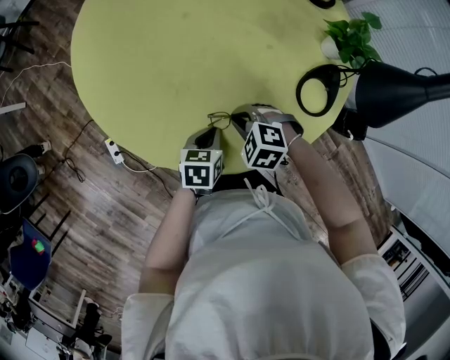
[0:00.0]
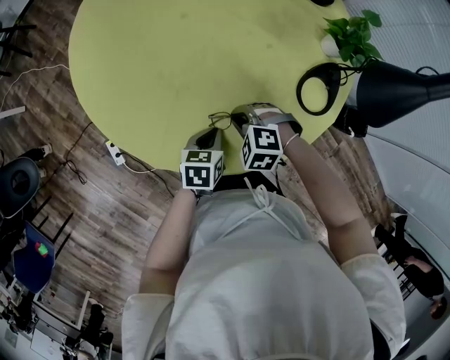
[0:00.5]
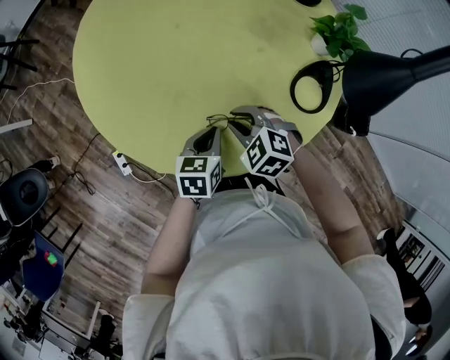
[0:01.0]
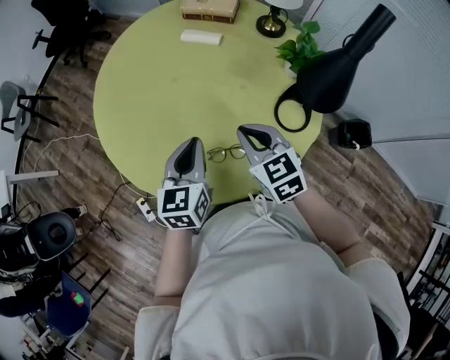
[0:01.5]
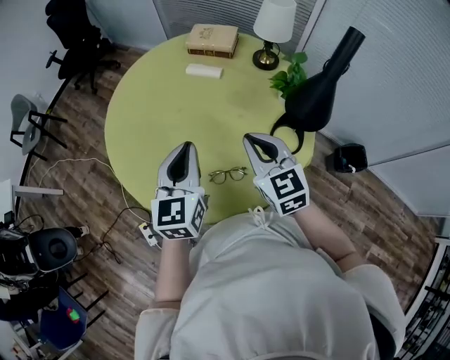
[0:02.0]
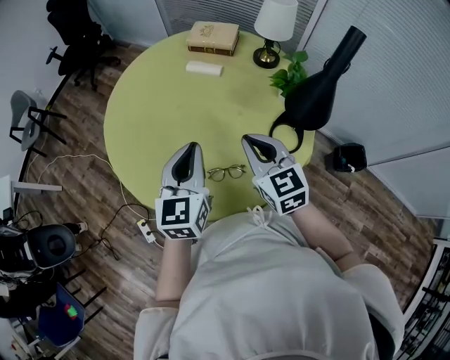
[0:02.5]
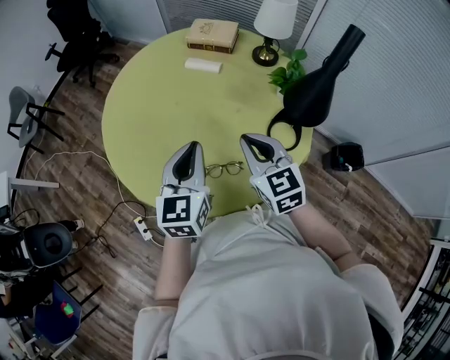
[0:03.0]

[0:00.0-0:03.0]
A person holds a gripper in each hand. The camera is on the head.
0:00.0 to 0:01.5: The two grippers go some 20 cm upward. The left gripper swivels some 30 degrees, while the right gripper angles its fingers upward, by some 40 degrees.
0:01.5 to 0:03.0: Both grippers travel together upward, roughly 10 cm.

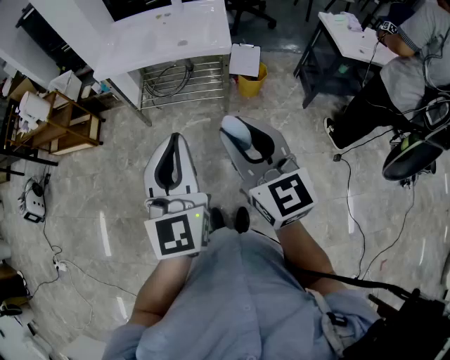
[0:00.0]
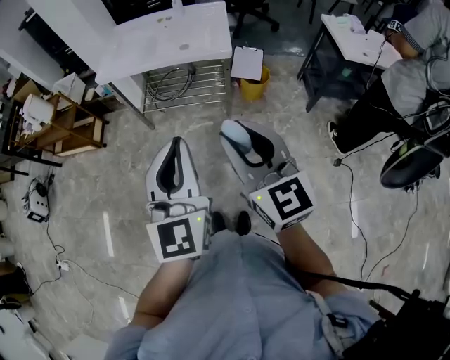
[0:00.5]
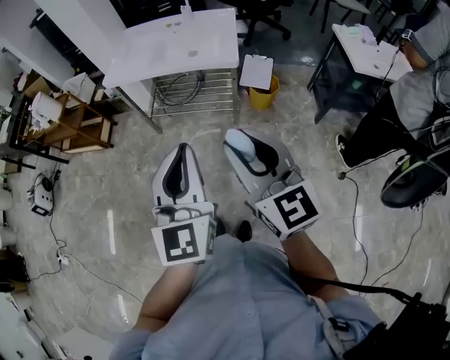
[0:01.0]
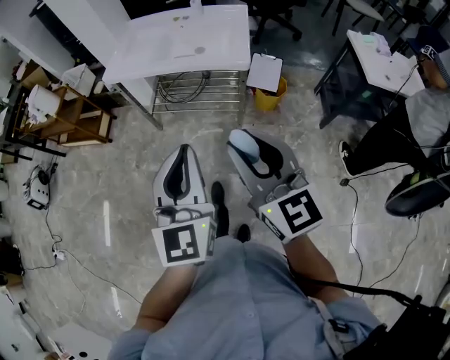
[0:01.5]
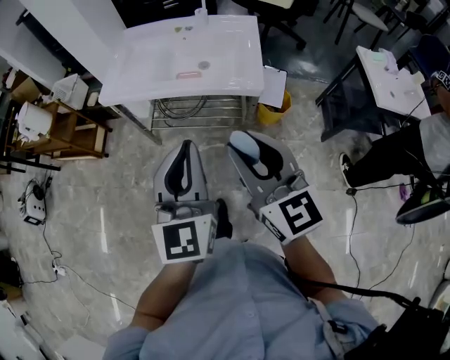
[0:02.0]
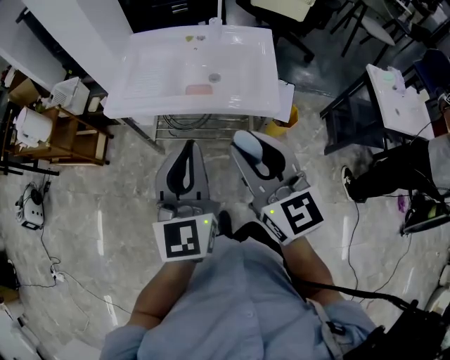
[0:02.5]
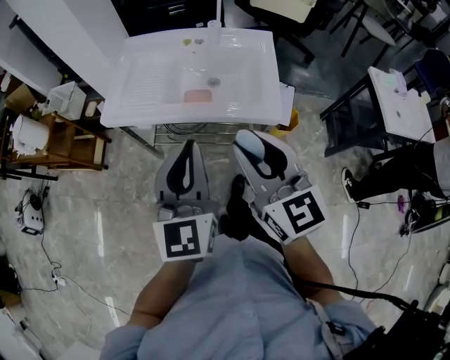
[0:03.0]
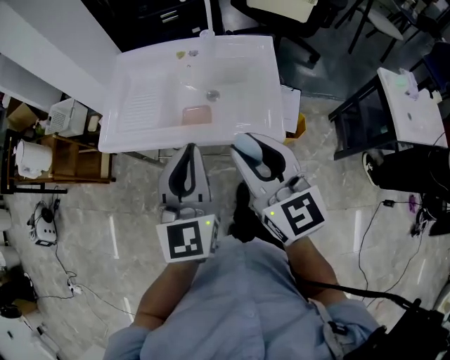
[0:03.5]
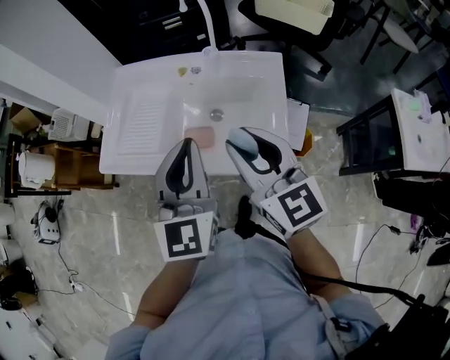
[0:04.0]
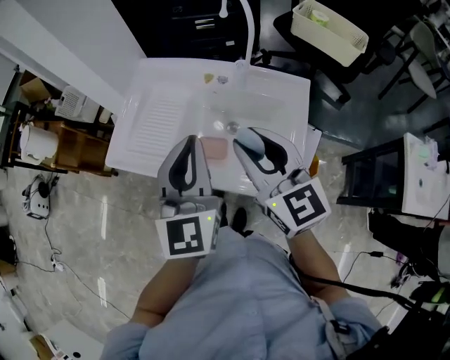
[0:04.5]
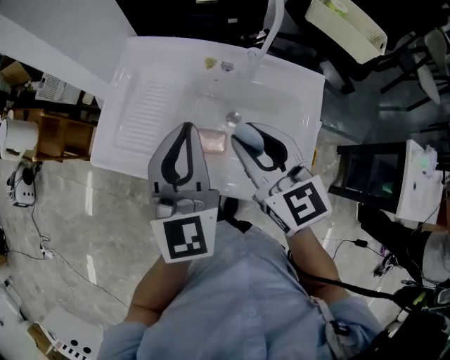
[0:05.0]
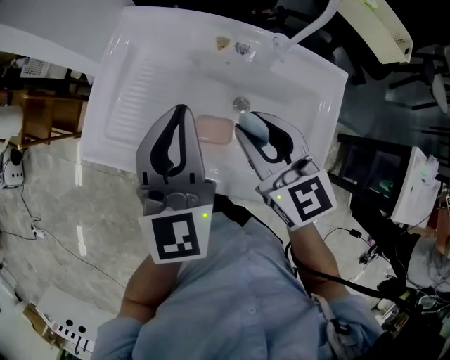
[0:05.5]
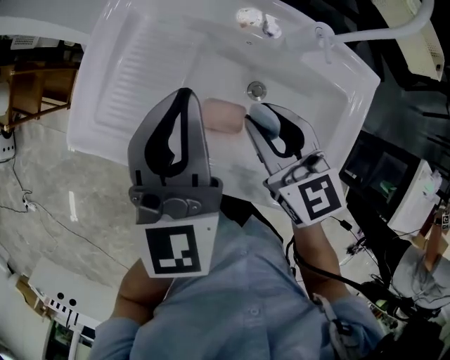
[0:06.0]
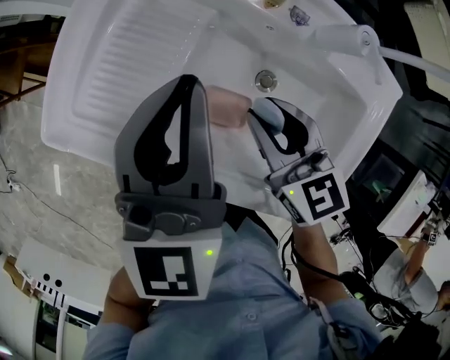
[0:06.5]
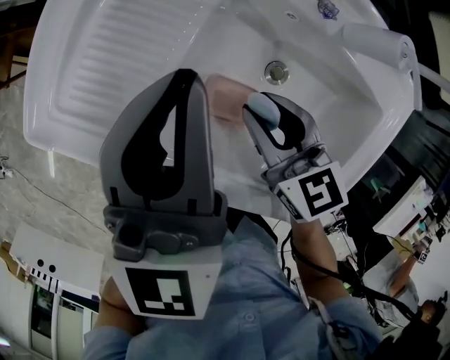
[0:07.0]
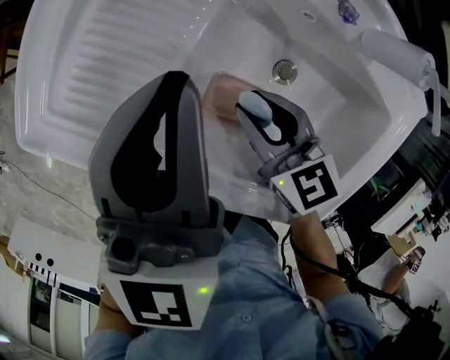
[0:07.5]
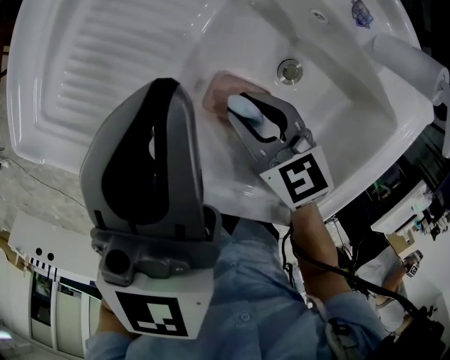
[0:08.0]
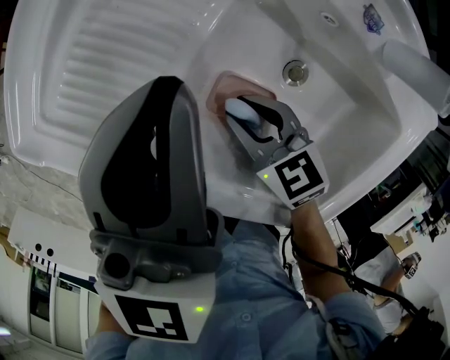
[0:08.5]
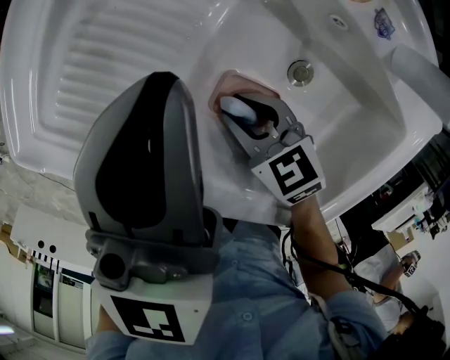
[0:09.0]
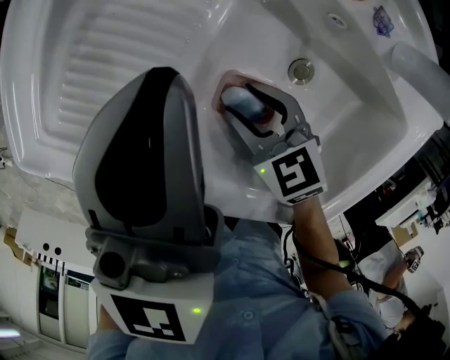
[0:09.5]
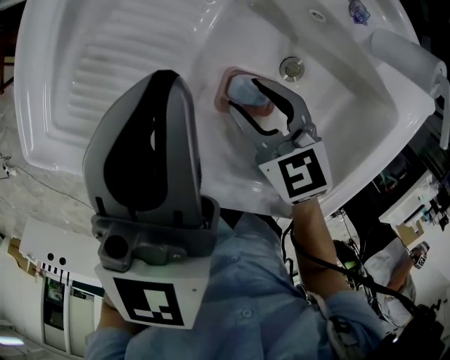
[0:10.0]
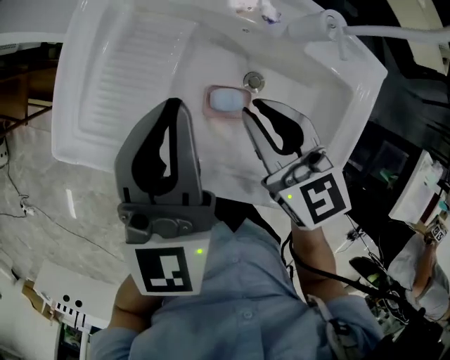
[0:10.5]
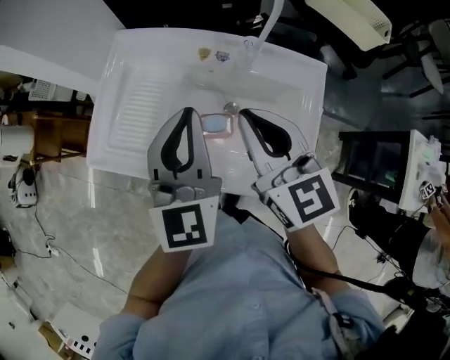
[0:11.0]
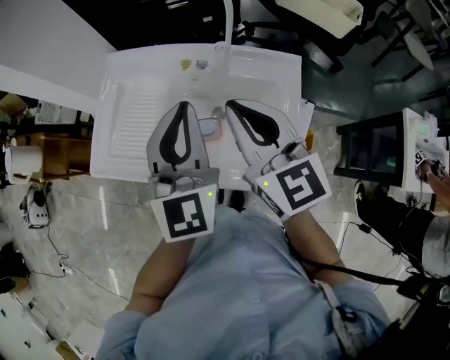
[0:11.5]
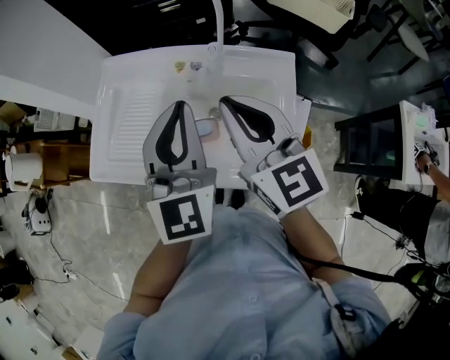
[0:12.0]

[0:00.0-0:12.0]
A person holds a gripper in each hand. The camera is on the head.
0:00.0 to 0:02.0: Both grippers move forward, about 25 cm.
0:02.0 to 0:04.0: Both grippers travel together forward, about 35 cm.
0:04.0 to 0:06.0: Both grippers travel together forward and downward, about 25 cm. The right gripper swivels about 30 degrees.
0:06.0 to 0:08.0: The left gripper shifts some 10 cm downward, while the right gripper heads downward, covering some 20 cm, and changes its angle by about 30 degrees.
0:08.0 to 0:10.0: The grippers make only small movements.
0:10.0 to 0:12.0: The right gripper shifts about 35 cm upward, tips its fingers upward by roughly 40 degrees, and closes up, while the left gripper is displaced upward, to the right and backward by approximately 30 cm, and swivels roughly 30 degrees.

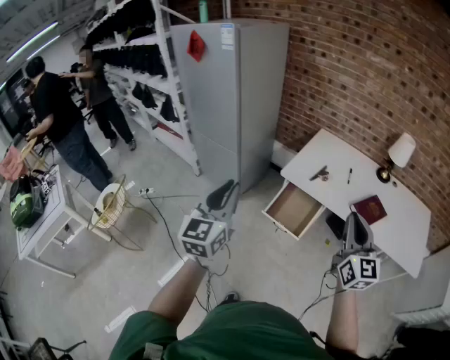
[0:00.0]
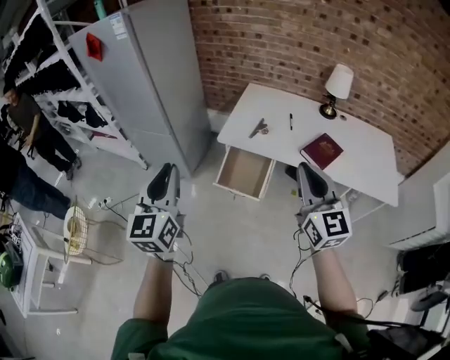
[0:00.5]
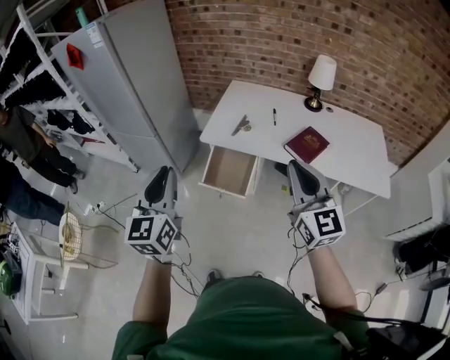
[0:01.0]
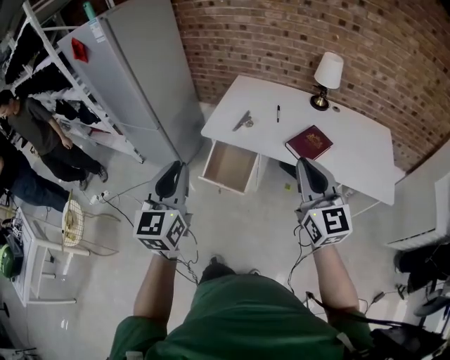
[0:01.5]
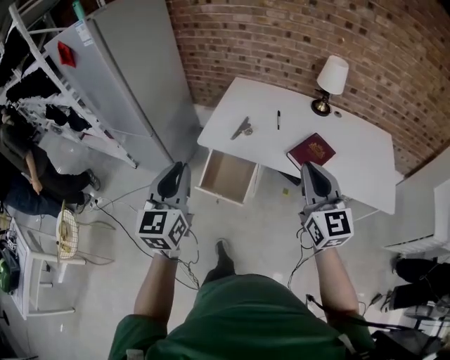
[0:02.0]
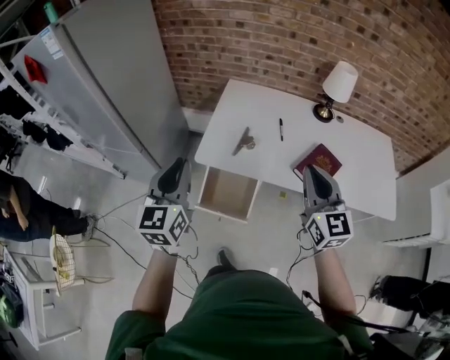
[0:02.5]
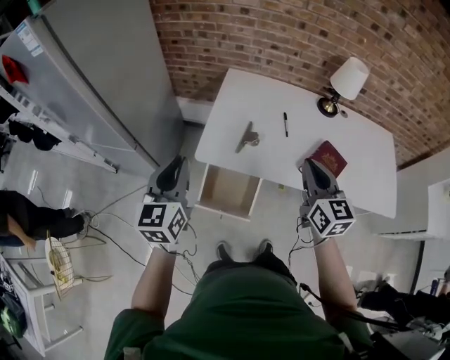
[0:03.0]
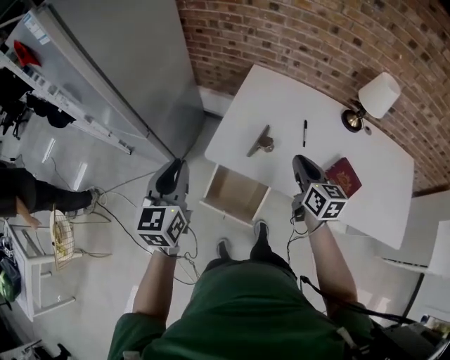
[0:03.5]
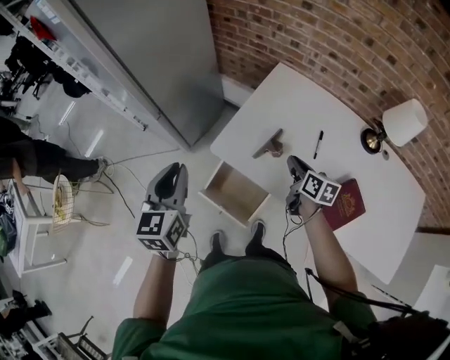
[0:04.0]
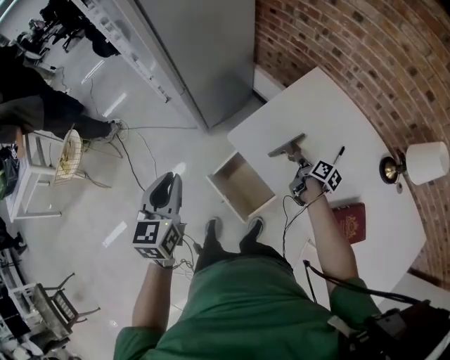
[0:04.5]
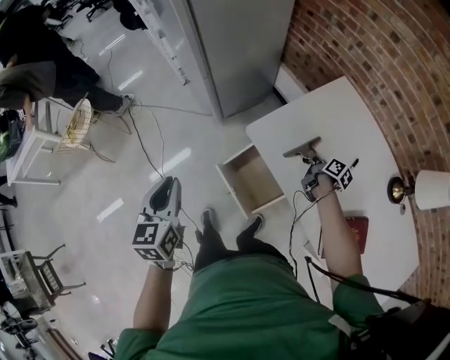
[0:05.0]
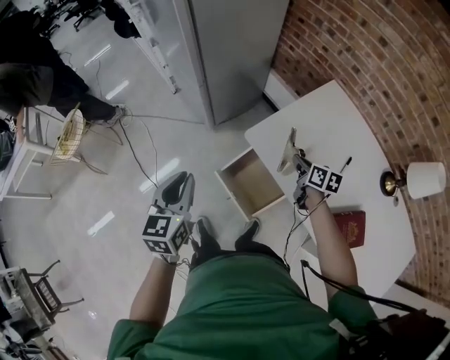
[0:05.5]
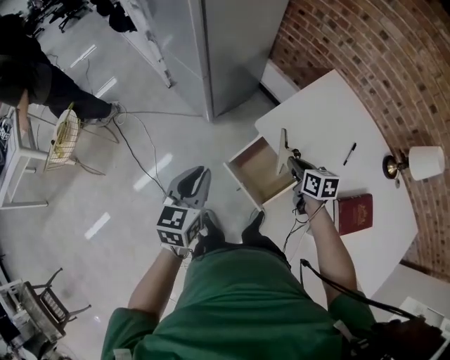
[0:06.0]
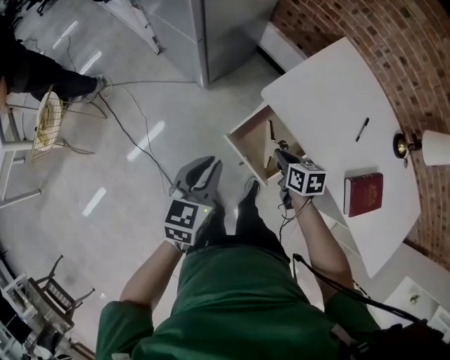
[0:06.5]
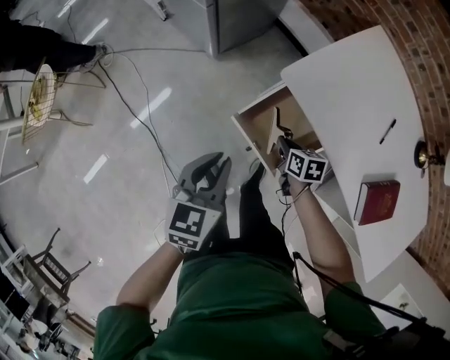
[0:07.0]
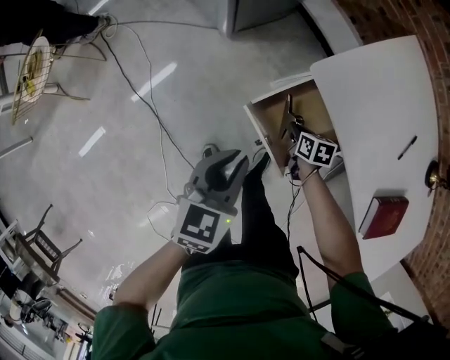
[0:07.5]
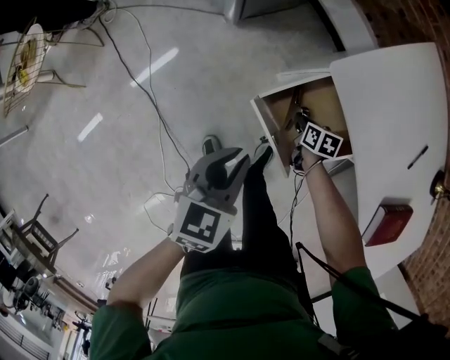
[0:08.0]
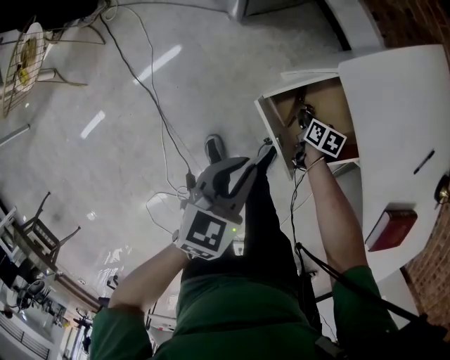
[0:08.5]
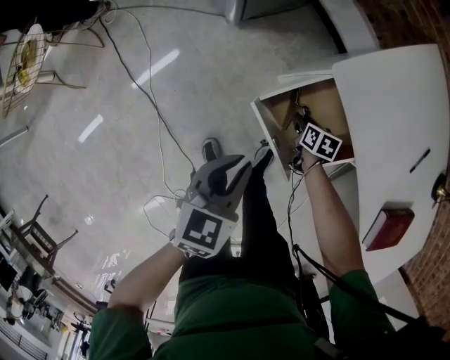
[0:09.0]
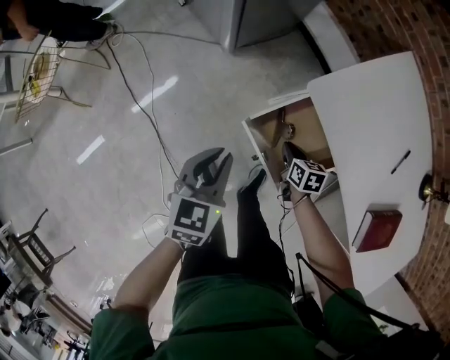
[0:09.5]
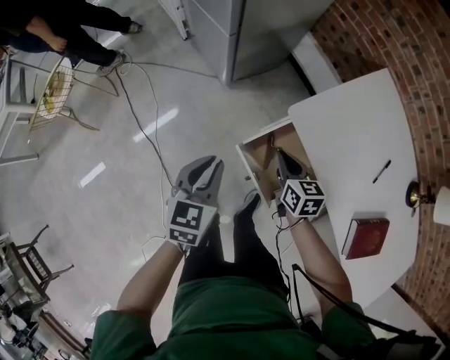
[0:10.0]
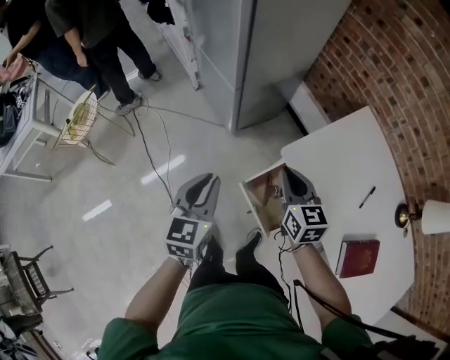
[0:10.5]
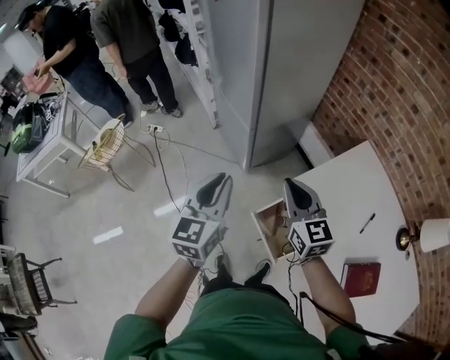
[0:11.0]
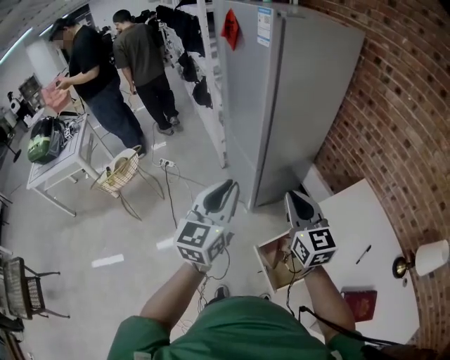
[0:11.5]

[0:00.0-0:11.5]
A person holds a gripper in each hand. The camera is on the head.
0:00.0 to 0:02.0: The right gripper is displaced forward and to the right by approximately 20 cm, while the left gripper travels to the right and forward by some 20 cm.
0:02.0 to 0:04.0: The left gripper shifts roughly 30 cm forward and downward, and turns by approximately 20 degrees, while the right gripper is displaced forward and downward by approximately 50 cm, and tips its fingers downward by approximately 30 degrees.
0:04.0 to 0:06.0: The left gripper is displaced to the left, downward and backward by roughly 20 cm. The right gripper is displaced to the left by about 20 cm, and turns by approximately 30 degrees.
0:06.0 to 0:07.5: The right gripper goes some 30 cm downward, and turns by approximately 20 degrees. Meanwhile the left gripper moves downward, about 20 cm.
0:07.5 to 0:09.5: The right gripper reaches about 10 cm downward, then returns, and opens, then closes again.
0:09.5 to 0:11.5: Both grippers move upward, about 50 cm. The right gripper tilts its fingers approximately 50 degrees upward, while the left gripper tips its fingers upward by approximately 40 degrees.
